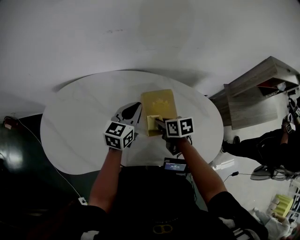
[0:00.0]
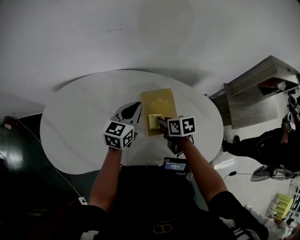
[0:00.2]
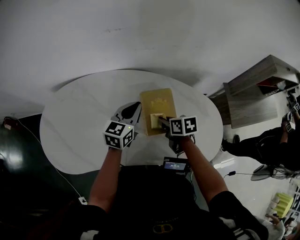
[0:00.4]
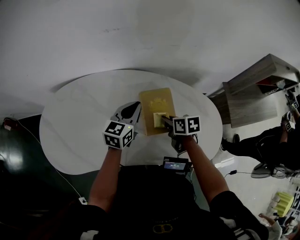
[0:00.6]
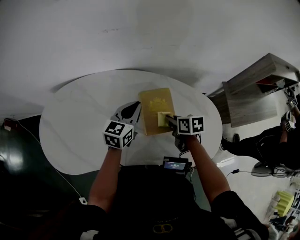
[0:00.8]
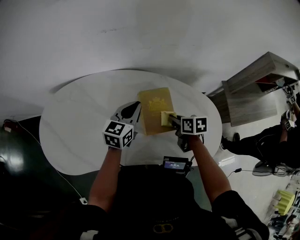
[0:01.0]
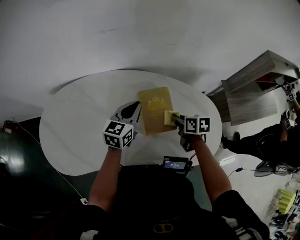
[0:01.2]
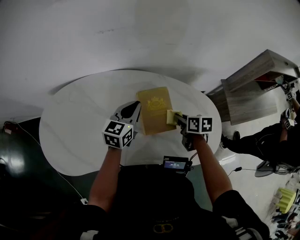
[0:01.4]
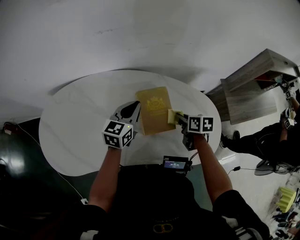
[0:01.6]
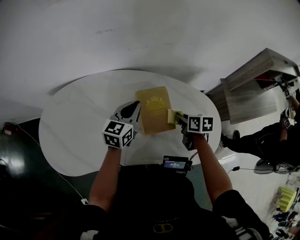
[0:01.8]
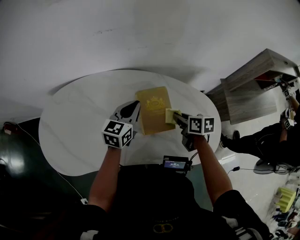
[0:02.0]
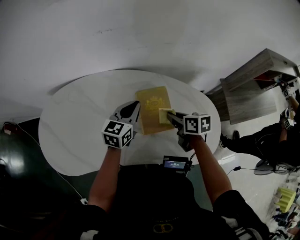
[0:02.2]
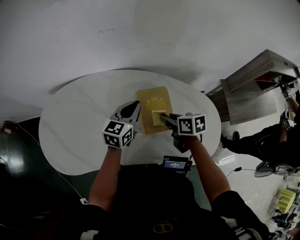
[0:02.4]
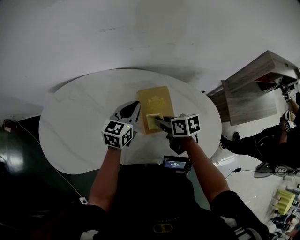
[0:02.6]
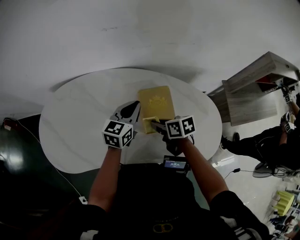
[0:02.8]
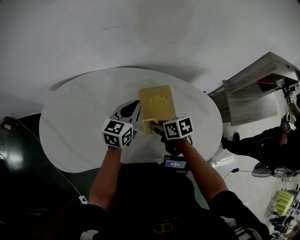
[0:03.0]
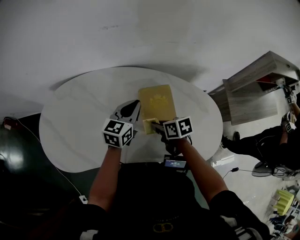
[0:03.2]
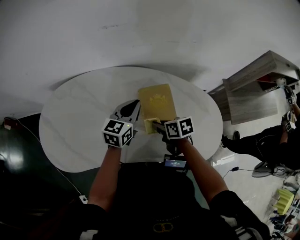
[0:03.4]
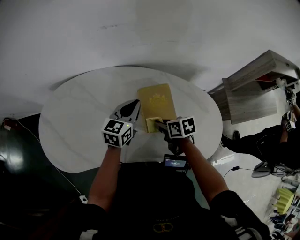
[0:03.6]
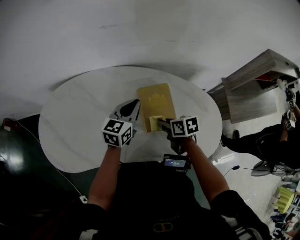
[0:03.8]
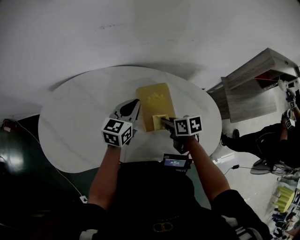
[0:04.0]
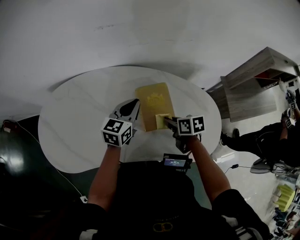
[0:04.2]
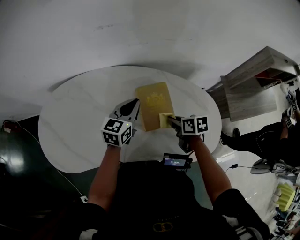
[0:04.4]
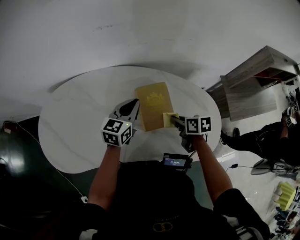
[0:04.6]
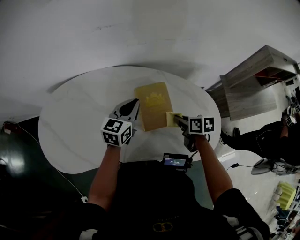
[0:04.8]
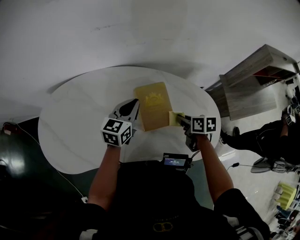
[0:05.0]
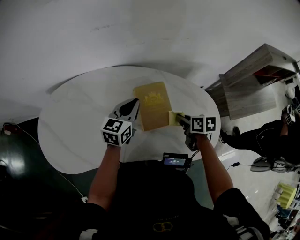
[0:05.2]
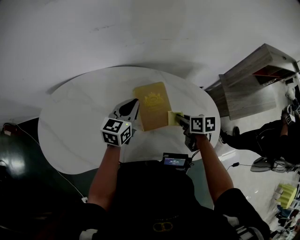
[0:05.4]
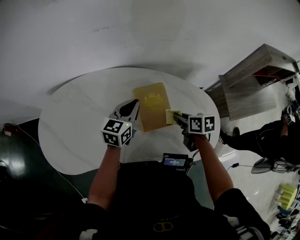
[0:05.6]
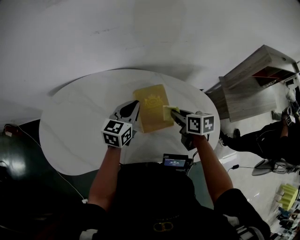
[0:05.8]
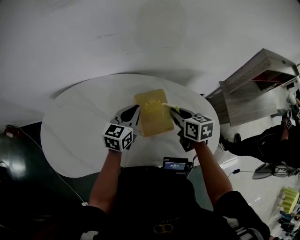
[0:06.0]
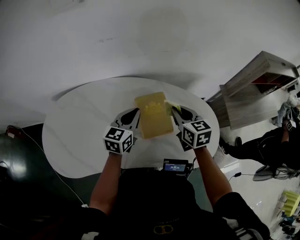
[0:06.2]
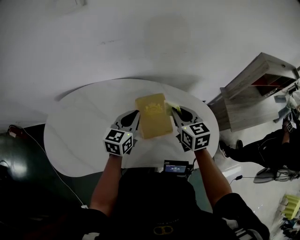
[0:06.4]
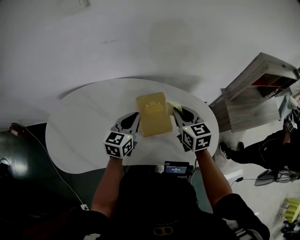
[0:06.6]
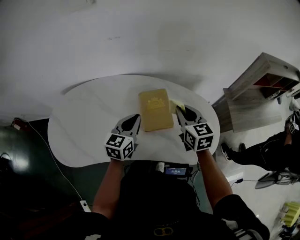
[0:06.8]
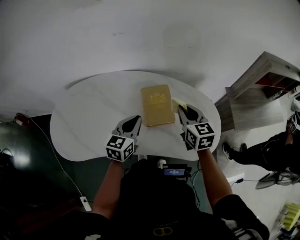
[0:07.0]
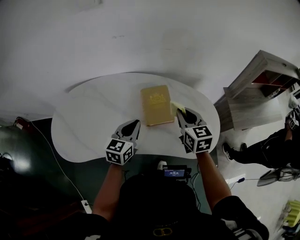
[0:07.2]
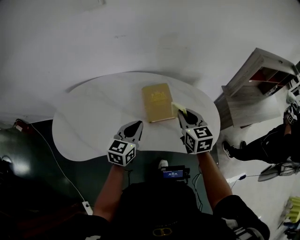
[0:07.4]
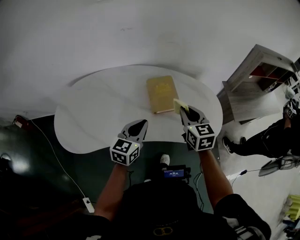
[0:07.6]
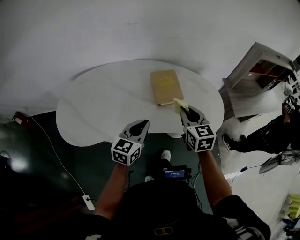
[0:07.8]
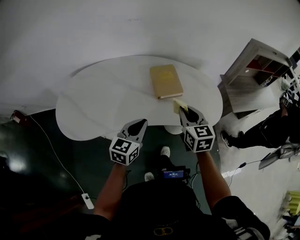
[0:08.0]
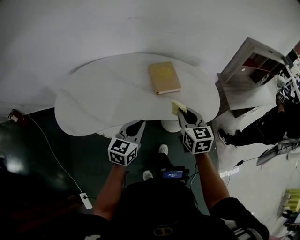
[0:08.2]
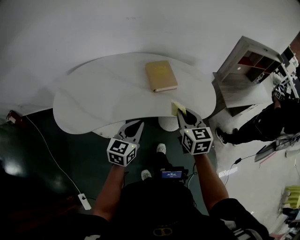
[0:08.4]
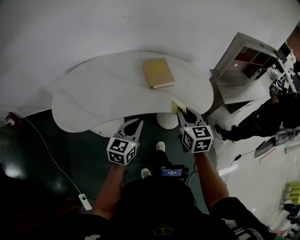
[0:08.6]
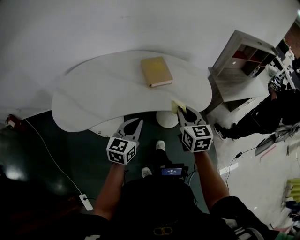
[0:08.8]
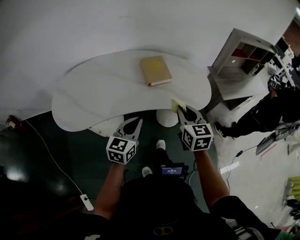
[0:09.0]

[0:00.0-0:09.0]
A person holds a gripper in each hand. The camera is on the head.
0.0 to 1.6 s: The right gripper is displaced to the right by roughly 15 cm.
1.6 to 3.0 s: The right gripper heads to the left, covering approximately 15 cm, and changes its angle by roughly 20 degrees.
3.0 to 4.4 s: The right gripper goes about 10 cm to the right.
4.4 to 6.0 s: The right gripper goes roughly 10 cm upward, and rotates about 20 degrees.
6.0 to 7.6 s: The right gripper is displaced backward and upward by roughly 15 cm, and turns by approximately 30 degrees. Meanwhile the left gripper heads backward, covering about 20 cm.
7.6 to 9.0 s: The two grippers go roughly 20 cm backward.

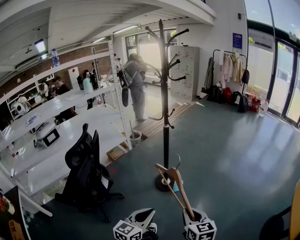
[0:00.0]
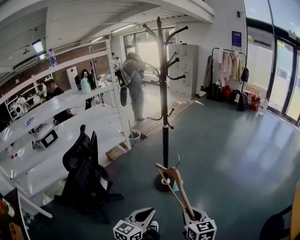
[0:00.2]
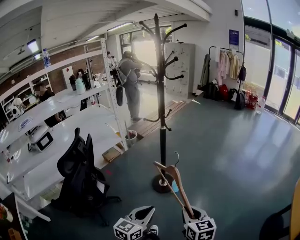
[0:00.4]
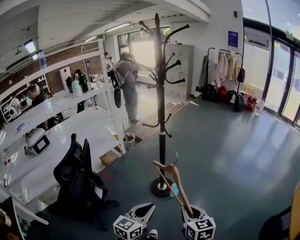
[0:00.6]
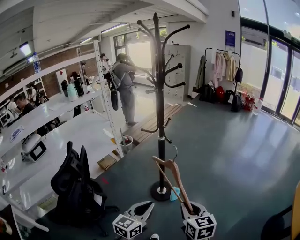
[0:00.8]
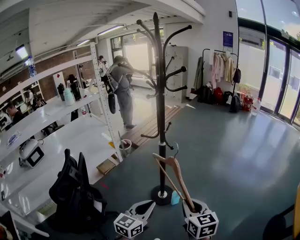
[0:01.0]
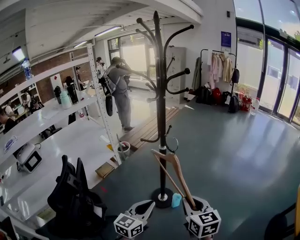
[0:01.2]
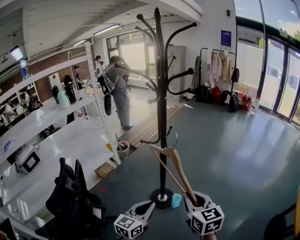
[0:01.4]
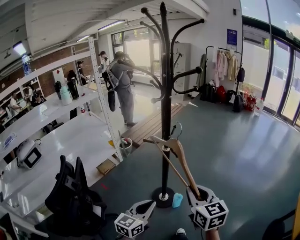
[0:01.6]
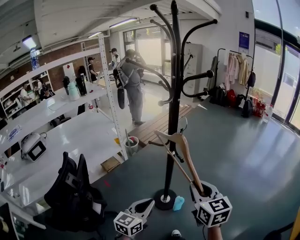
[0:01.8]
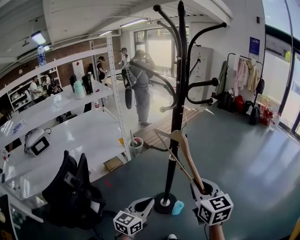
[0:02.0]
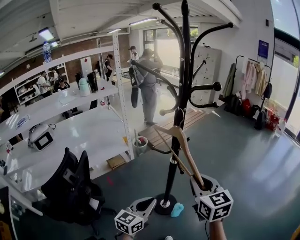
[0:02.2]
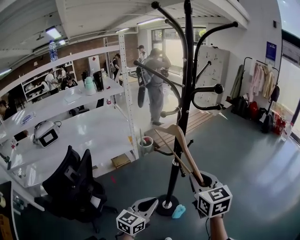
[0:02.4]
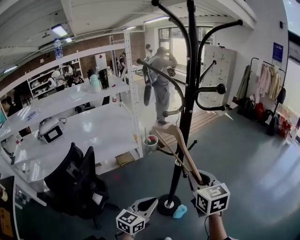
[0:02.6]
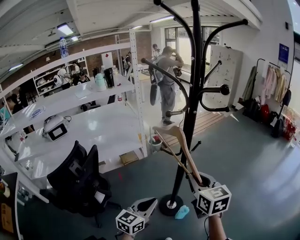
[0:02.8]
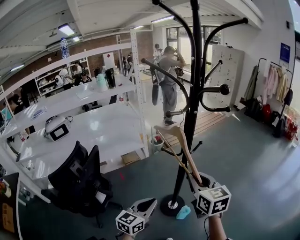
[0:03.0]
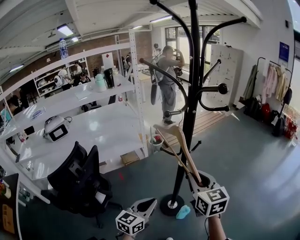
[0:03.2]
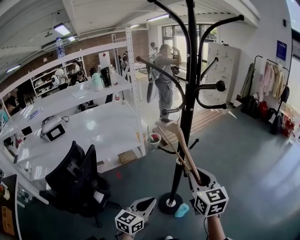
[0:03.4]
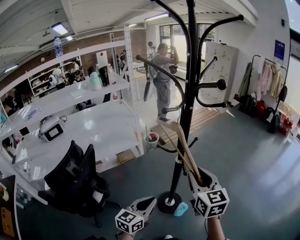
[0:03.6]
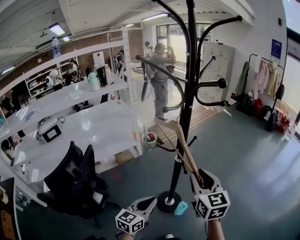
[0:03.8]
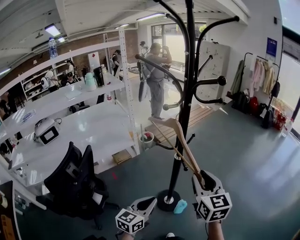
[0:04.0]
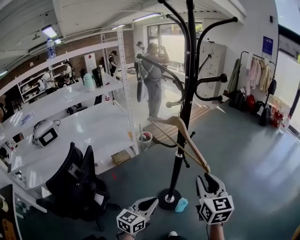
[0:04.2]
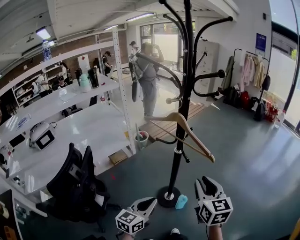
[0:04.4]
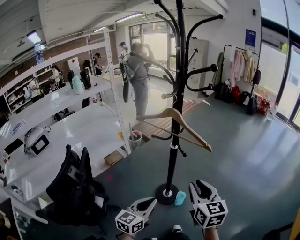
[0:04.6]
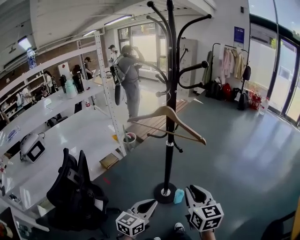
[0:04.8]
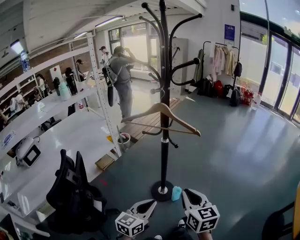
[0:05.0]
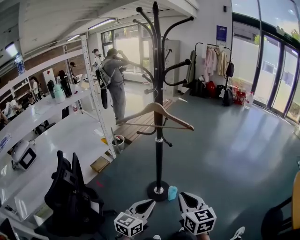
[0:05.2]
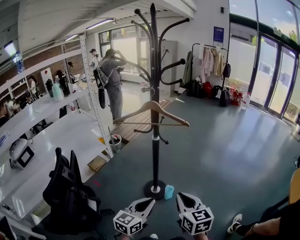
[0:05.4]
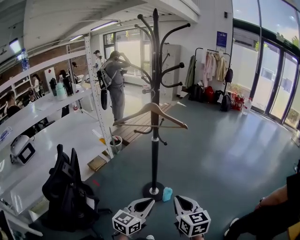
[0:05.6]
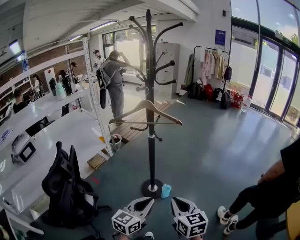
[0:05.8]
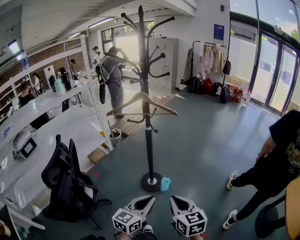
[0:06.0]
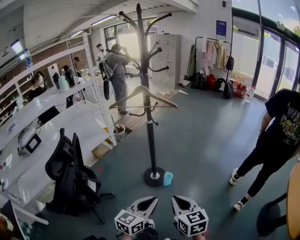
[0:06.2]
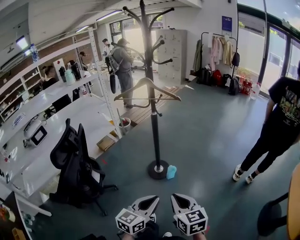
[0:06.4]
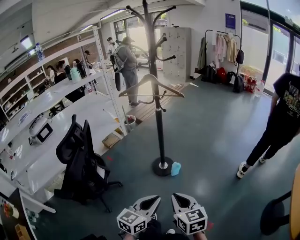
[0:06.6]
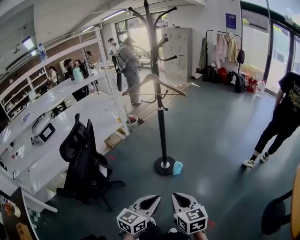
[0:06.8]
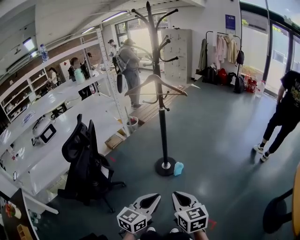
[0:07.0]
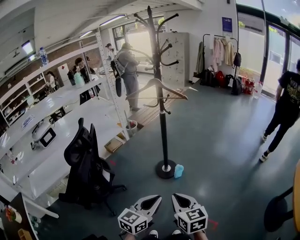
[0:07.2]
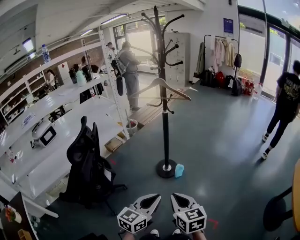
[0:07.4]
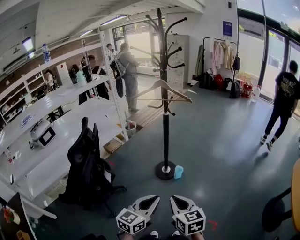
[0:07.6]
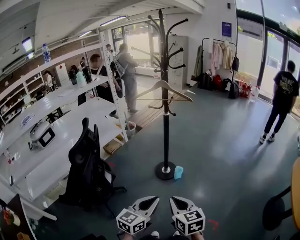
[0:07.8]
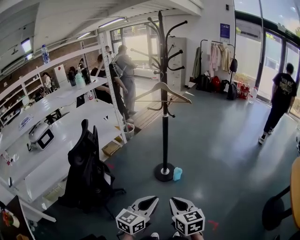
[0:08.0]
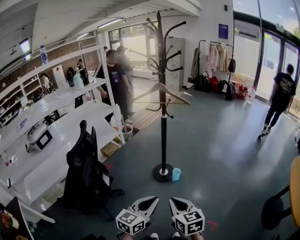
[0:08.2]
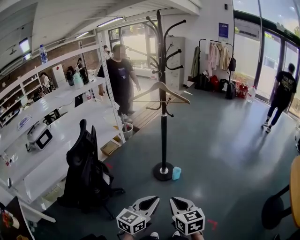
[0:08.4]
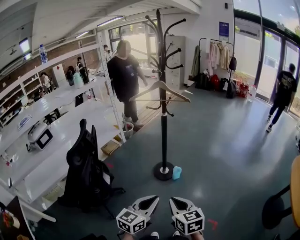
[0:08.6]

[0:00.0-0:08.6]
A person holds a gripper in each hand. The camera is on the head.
0.0 to 1.4 s: Both grippers travel together forward, roughly 30 cm.
1.4 to 2.8 s: The left gripper is displaced forward by about 10 cm, and swivels roughly 20 degrees, while the right gripper heads forward, covering some 20 cm, and turns by some 20 degrees.
2.8 to 4.4 s: The right gripper heads backward, covering roughly 10 cm, and rotates approximately 20 degrees. The left gripper heads backward, covering roughly 5 cm.
4.4 to 5.8 s: The right gripper travels backward by roughly 25 cm, and closes up. The left gripper is displaced backward and to the right by approximately 15 cm.
5.8 to 7.2 s: Both grippers move backward, approximately 20 cm.
7.2 to 8.6 s: Both grippers travel together to the left, roughly 5 cm.

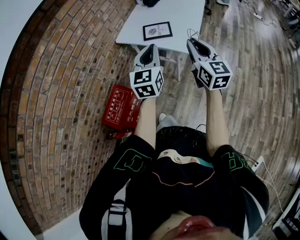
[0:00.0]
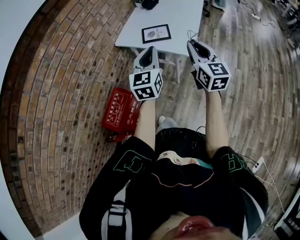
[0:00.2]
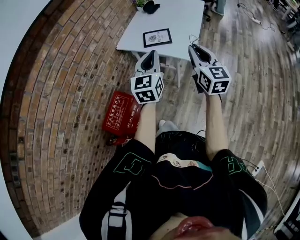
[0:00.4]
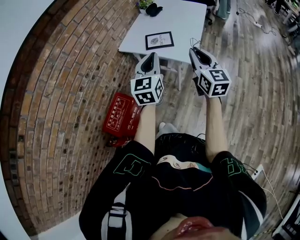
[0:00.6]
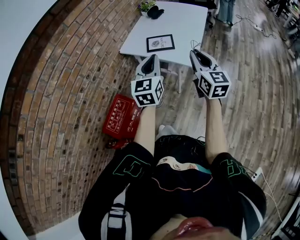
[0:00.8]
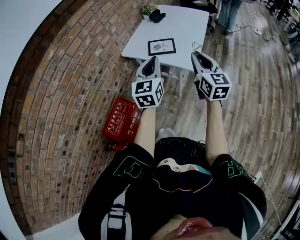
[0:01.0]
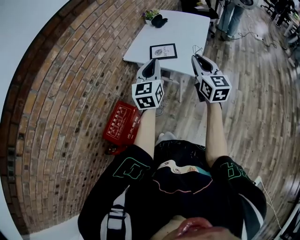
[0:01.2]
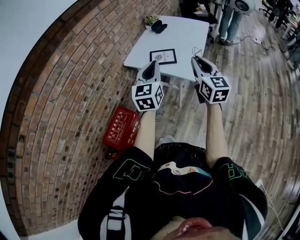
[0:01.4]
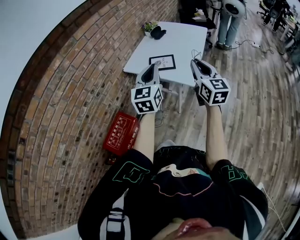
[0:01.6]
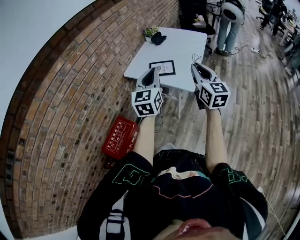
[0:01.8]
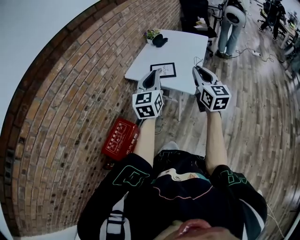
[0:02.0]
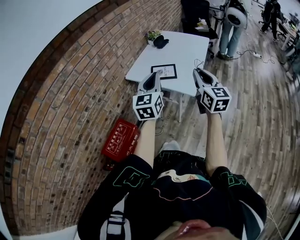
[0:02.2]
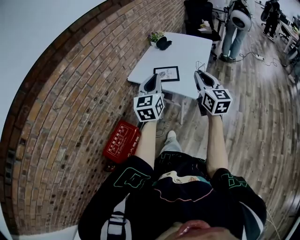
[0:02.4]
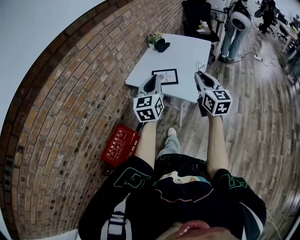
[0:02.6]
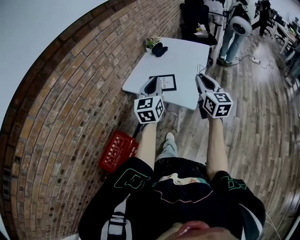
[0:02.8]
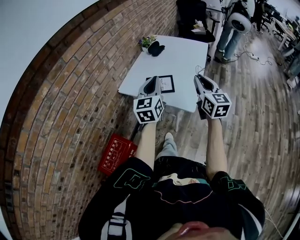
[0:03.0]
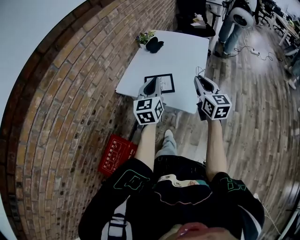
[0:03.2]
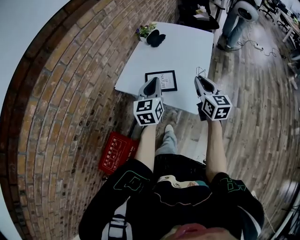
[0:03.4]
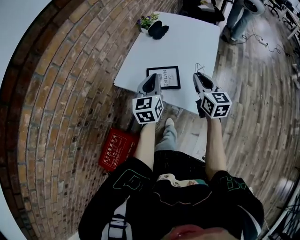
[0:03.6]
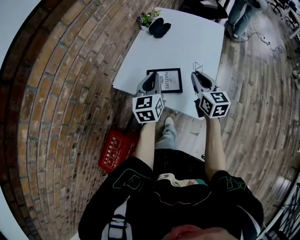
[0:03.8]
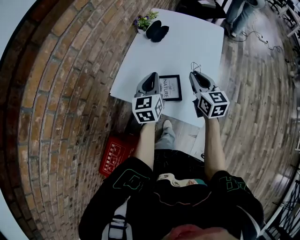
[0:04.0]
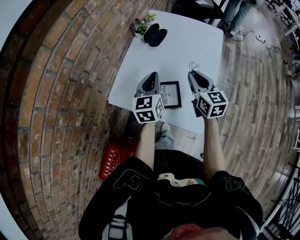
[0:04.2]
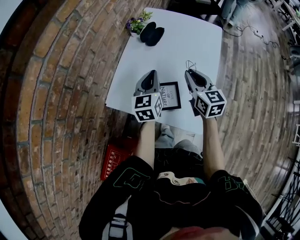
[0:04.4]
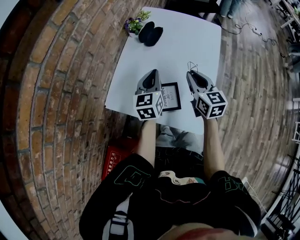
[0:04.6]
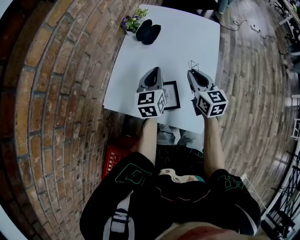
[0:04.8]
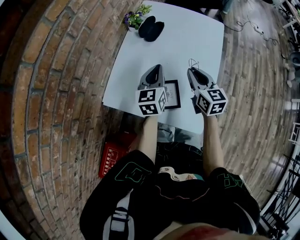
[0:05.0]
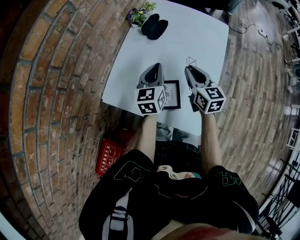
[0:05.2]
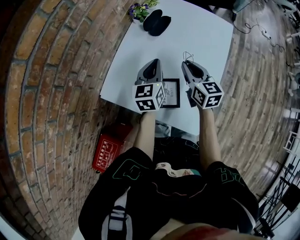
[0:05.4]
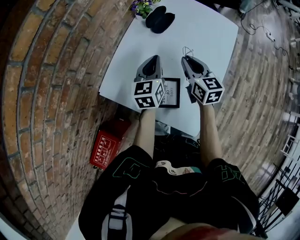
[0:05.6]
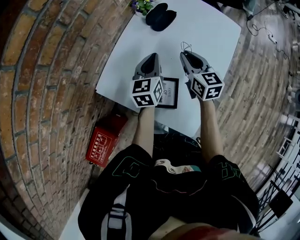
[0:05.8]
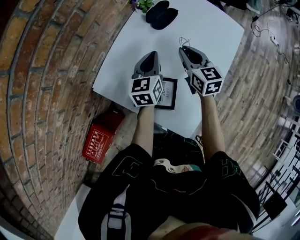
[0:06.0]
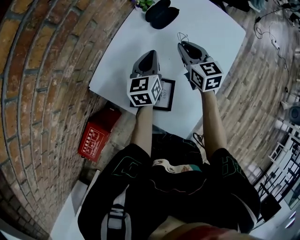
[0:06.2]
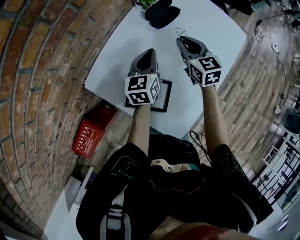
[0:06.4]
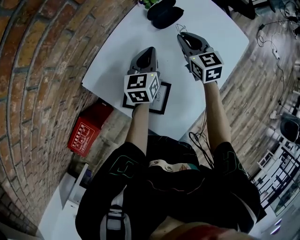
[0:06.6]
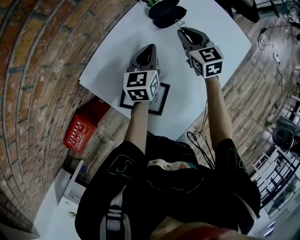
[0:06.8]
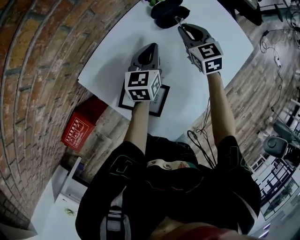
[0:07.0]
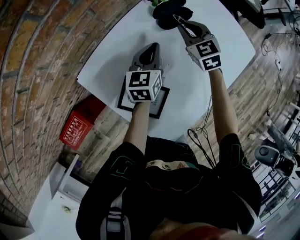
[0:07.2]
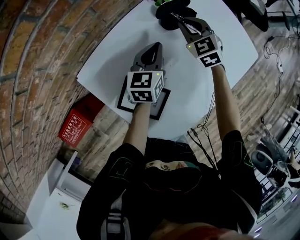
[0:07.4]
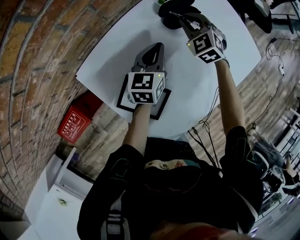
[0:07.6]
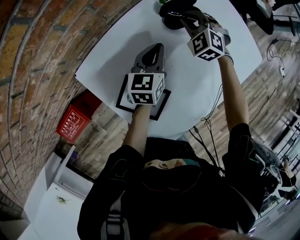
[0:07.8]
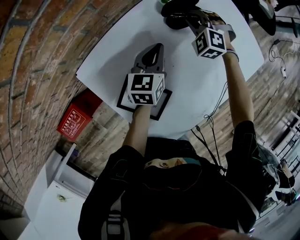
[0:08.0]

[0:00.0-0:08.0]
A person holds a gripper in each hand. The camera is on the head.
0.0 to 1.6 s: There are only small adjustments of the grippers.
1.6 to 3.2 s: The two grippers go some 15 cm forward.
3.2 to 4.8 s: Both grippers move forward and downward, about 30 cm.
4.8 to 6.4 s: The right gripper travels forward by some 20 cm, and swivels about 30 degrees, while the left gripper heads forward and downward, covering some 10 cm.
6.4 to 8.0 s: The left gripper changes place by approximately 5 cm. Meanwhile the right gripper goes approximately 15 cm forward and downward, and twists approximately 70 degrees counterclockwise, seen from behind.
